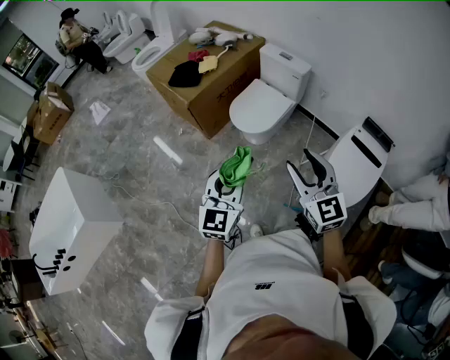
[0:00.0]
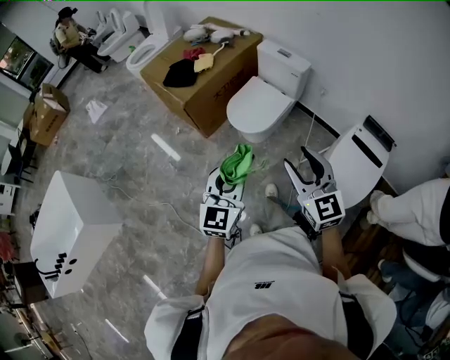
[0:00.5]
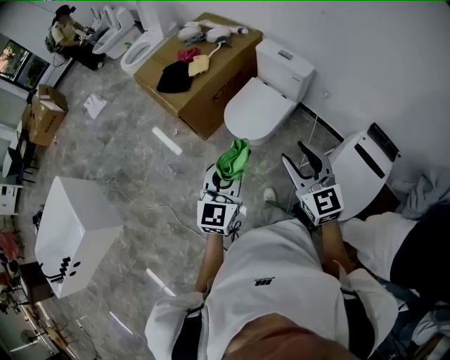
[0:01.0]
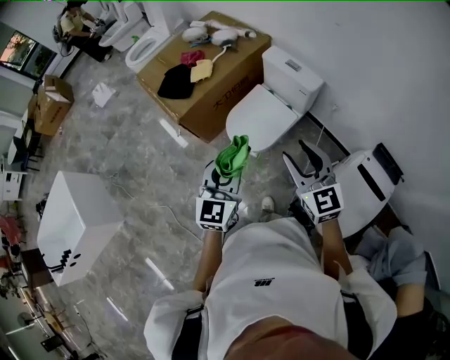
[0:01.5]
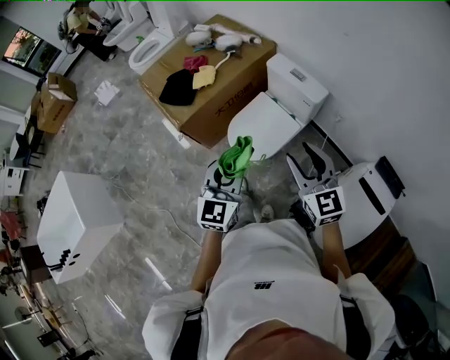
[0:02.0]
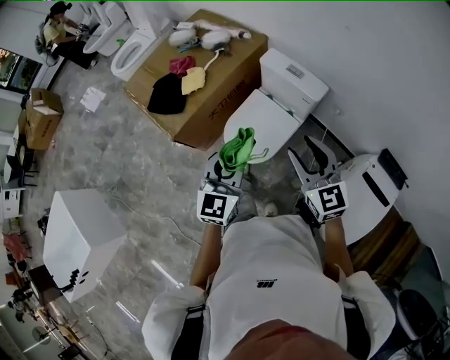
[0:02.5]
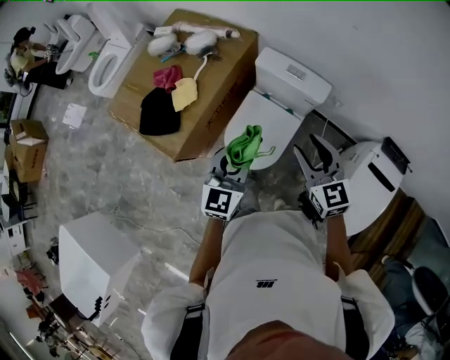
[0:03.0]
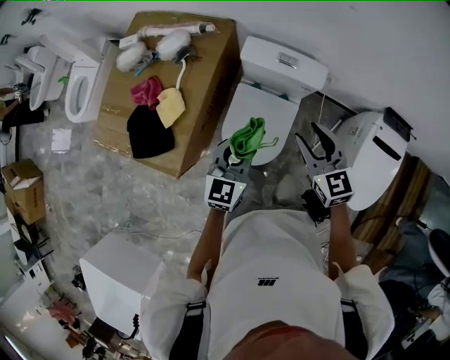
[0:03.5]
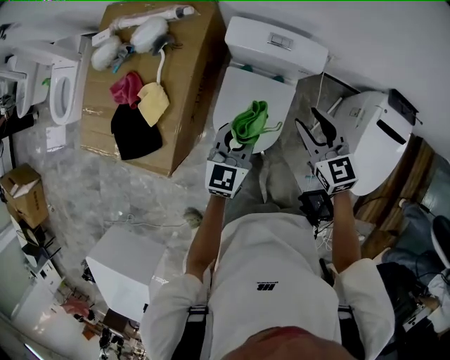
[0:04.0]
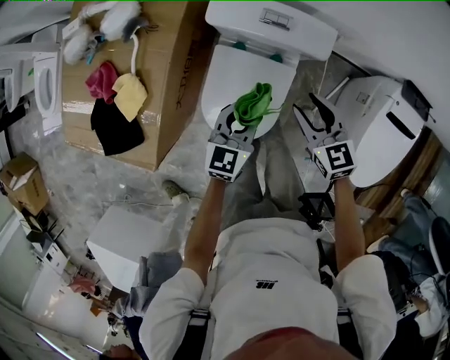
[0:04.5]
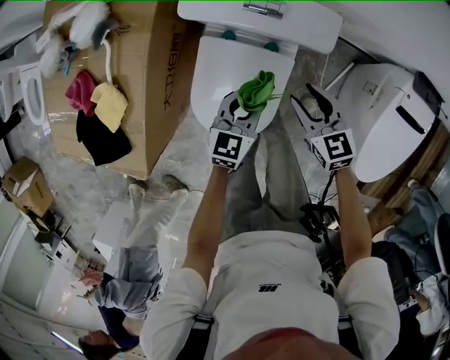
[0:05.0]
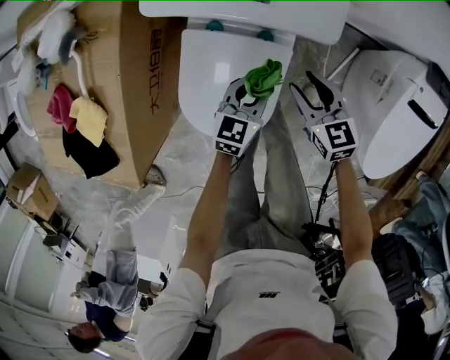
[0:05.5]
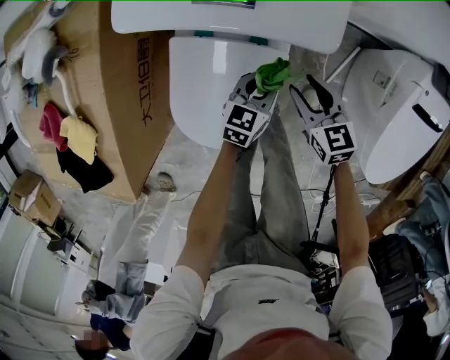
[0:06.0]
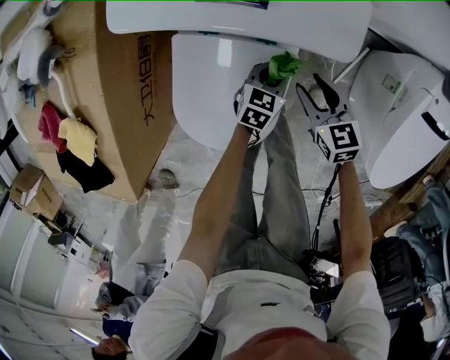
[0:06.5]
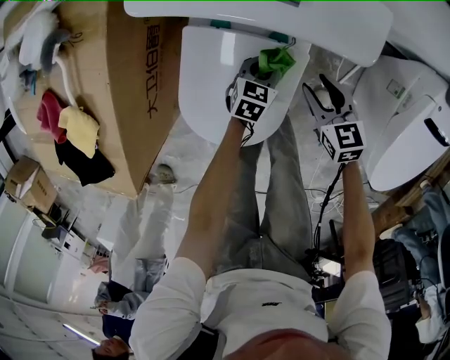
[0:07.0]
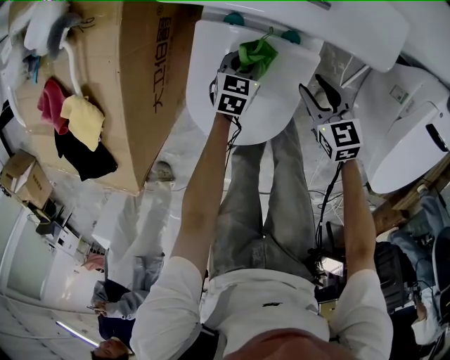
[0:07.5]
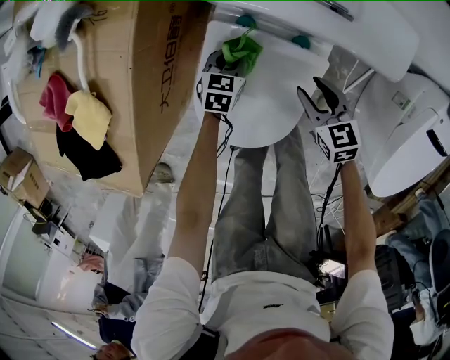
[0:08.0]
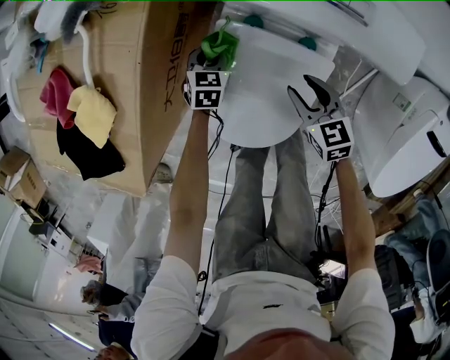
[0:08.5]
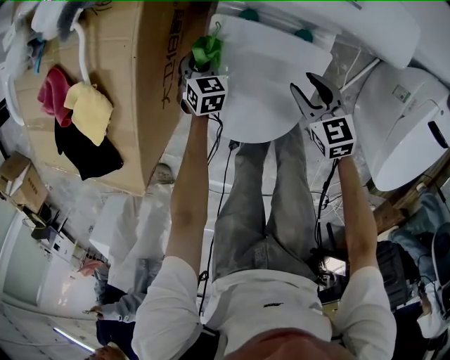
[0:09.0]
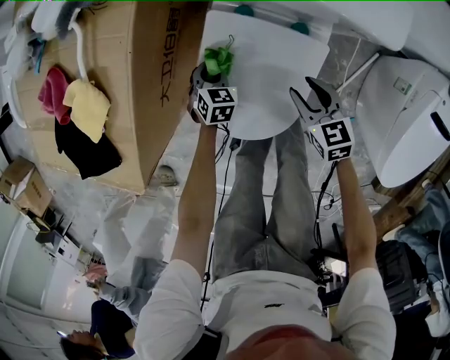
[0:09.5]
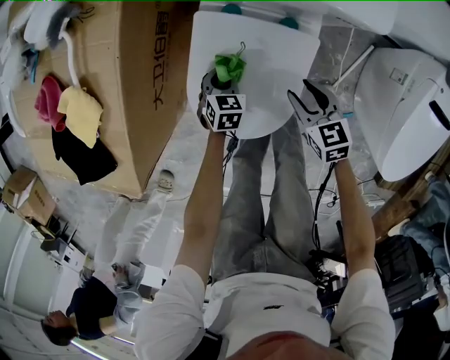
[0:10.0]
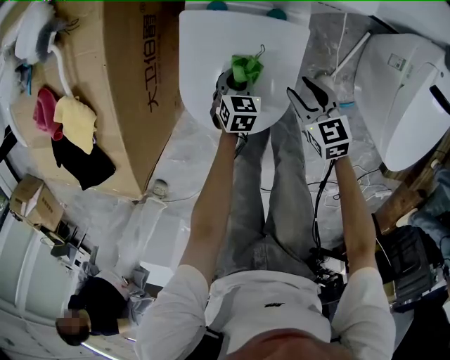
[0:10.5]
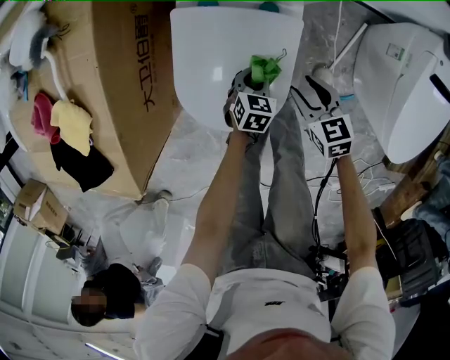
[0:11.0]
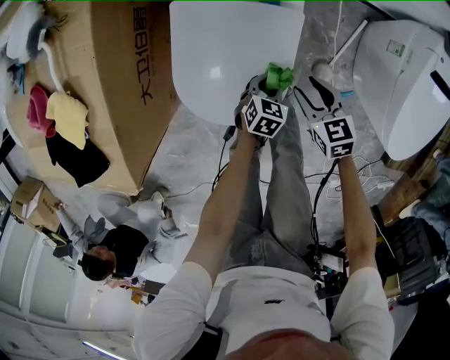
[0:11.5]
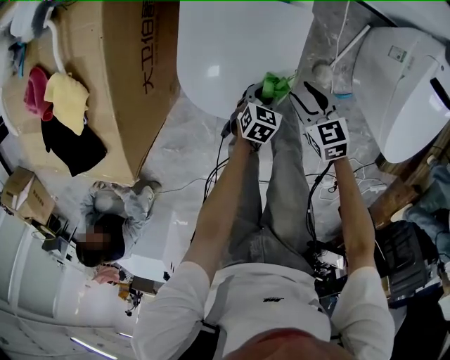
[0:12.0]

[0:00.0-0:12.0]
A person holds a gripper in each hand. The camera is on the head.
0:00.0 to 0:02.0: Both grippers move forward, roughly 35 cm.
0:02.0 to 0:04.0: The left gripper ends up about 40 cm from where it was, and rotates some 40 degrees; the right gripper shifts by roughly 30 cm, and rotates about 30 degrees.
0:04.0 to 0:06.0: The left gripper is displaced downward and to the right by approximately 40 cm, and rotates about 30 degrees. The right gripper is displaced downward by roughly 35 cm.
0:06.0 to 0:08.0: The left gripper heads to the left and downward, covering about 25 cm, and changes its angle by approximately 20 degrees. Meanwhile the right gripper shifts roughly 10 cm to the left.
0:08.0 to 0:10.0: The two grippers go approximately 10 cm backward.
0:10.0 to 0:12.0: The right gripper is displaced backward by about 10 cm. Meanwhile the left gripper goes approximately 20 cm backward and to the right, and swivels some 20 degrees.

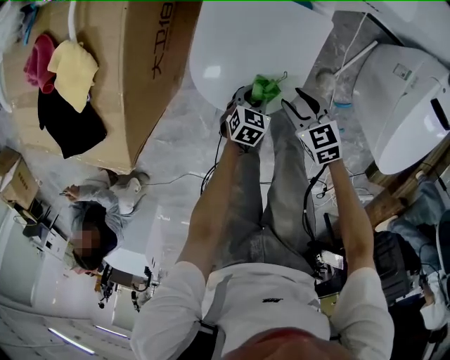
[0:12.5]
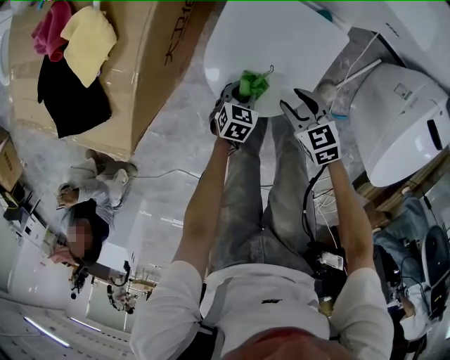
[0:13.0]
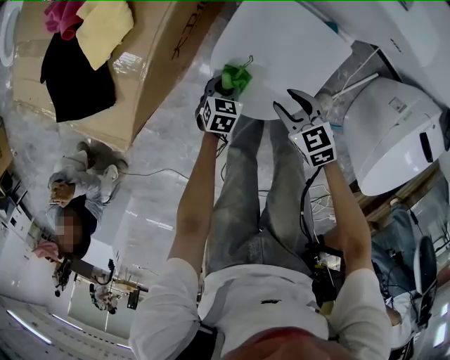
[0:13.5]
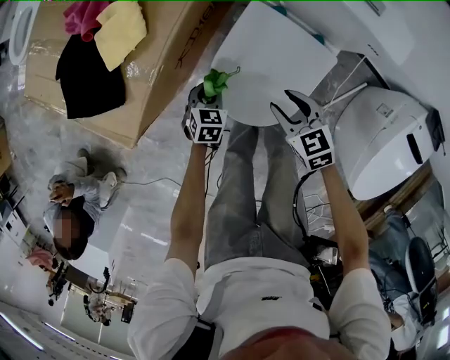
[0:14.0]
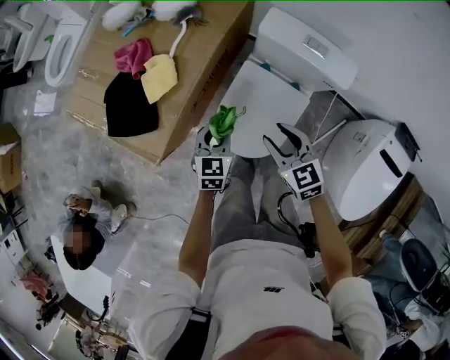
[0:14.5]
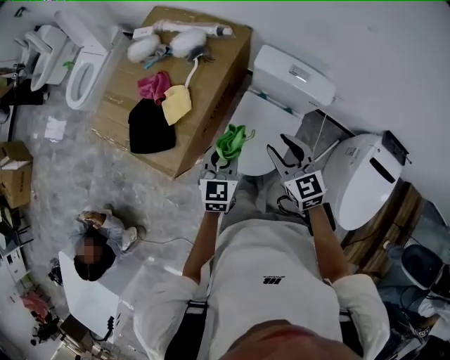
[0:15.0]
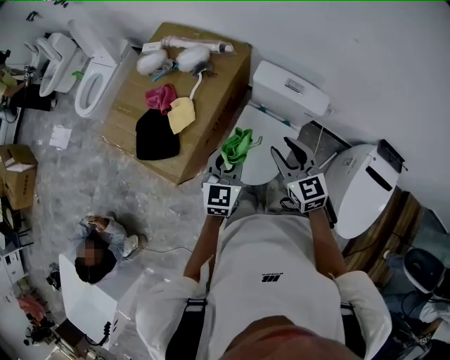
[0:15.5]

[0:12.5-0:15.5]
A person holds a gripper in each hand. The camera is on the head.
0:12.5 to 0:14.0: The right gripper moves upward, about 10 cm; the left gripper ends up approximately 20 cm from where it was, and changes its angle by about 30 degrees.
0:14.0 to 0:15.5: Both grippers travel together upward, some 50 cm. The left gripper angles its fingers upward, by some 40 degrees. The right gripper rotates approximately 30 degrees.
